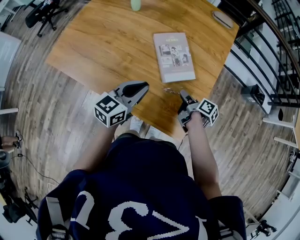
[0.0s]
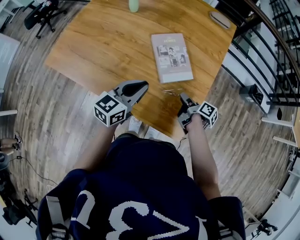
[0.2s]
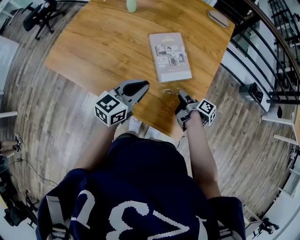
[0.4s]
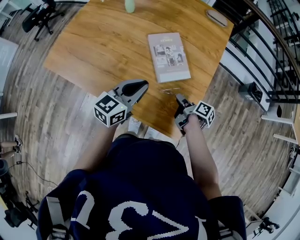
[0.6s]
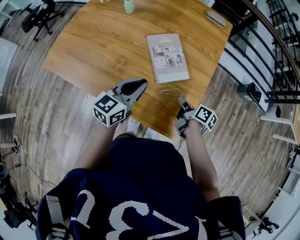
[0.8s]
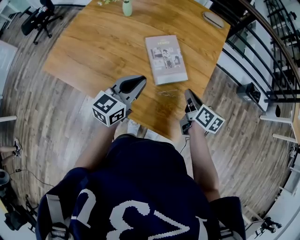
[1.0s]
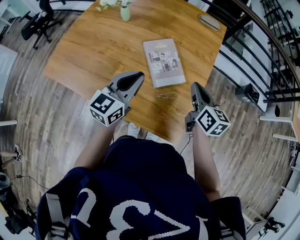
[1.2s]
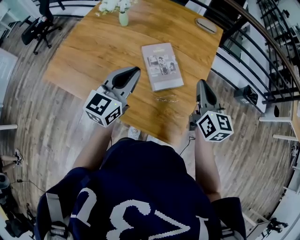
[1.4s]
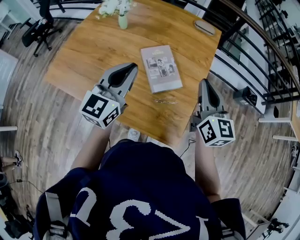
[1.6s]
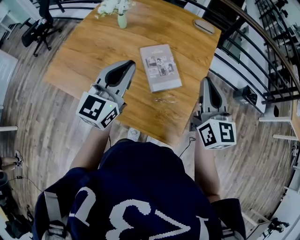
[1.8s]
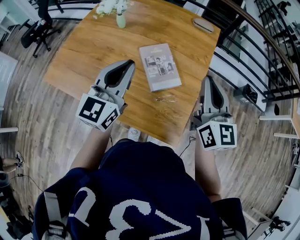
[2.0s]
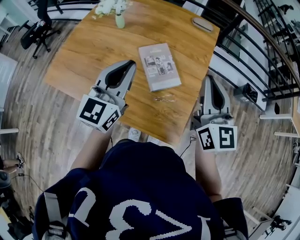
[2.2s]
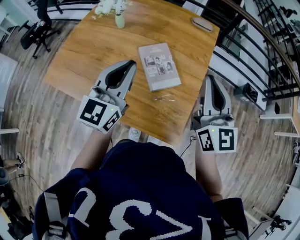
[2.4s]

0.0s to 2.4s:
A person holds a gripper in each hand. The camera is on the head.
0.0s to 1.2s: The left gripper is displaced upward by about 5 cm. Meanwhile the right gripper moves upward, approximately 20 cm, rotates around the line of its fingers by about 50 degrees, counterclockwise from behind, and closes up.
1.2s to 2.4s: The right gripper is displaced upward by roughly 15 cm, and changes its angle by about 40 degrees; the left gripper travels upward by approximately 10 cm.

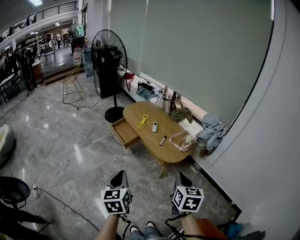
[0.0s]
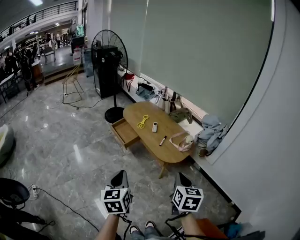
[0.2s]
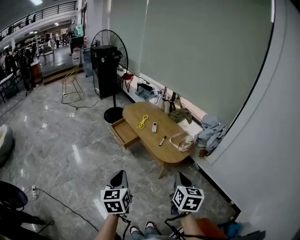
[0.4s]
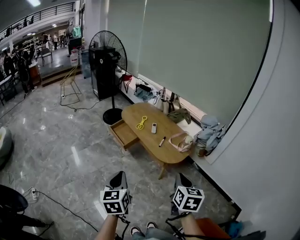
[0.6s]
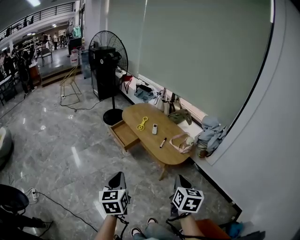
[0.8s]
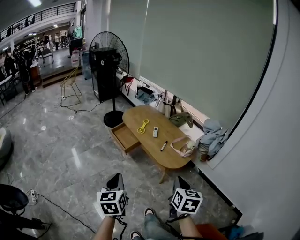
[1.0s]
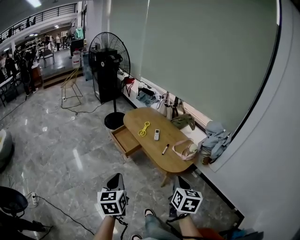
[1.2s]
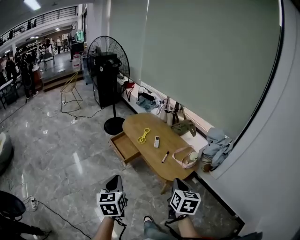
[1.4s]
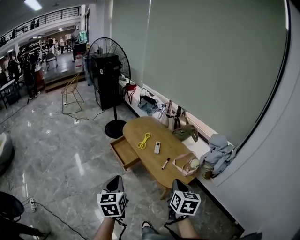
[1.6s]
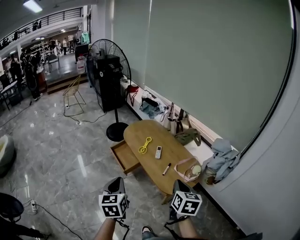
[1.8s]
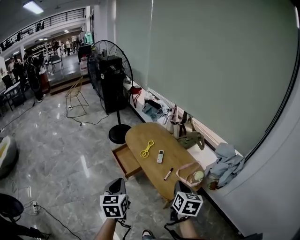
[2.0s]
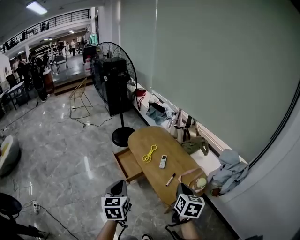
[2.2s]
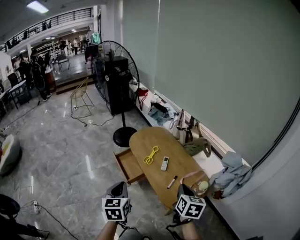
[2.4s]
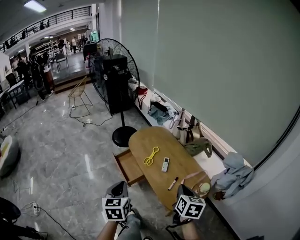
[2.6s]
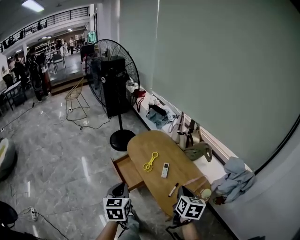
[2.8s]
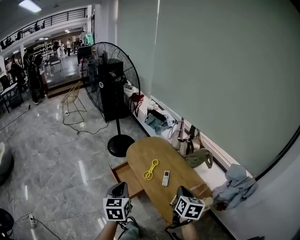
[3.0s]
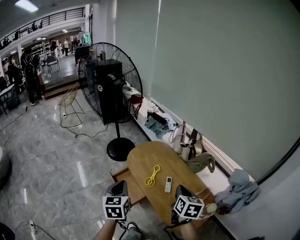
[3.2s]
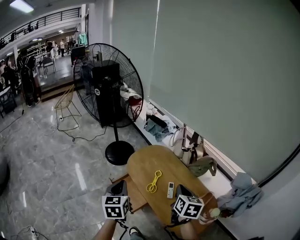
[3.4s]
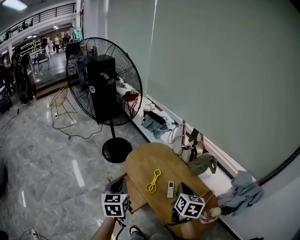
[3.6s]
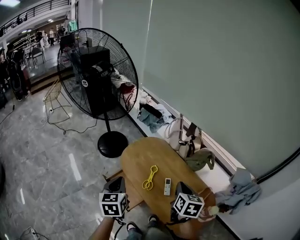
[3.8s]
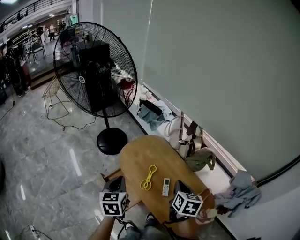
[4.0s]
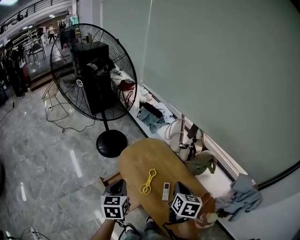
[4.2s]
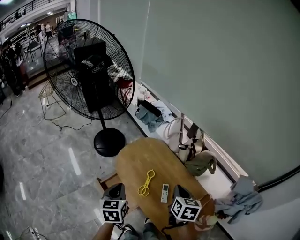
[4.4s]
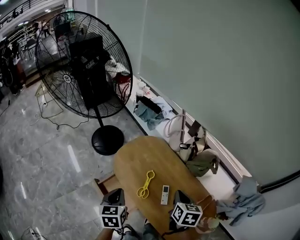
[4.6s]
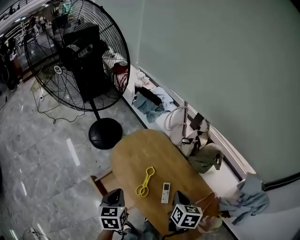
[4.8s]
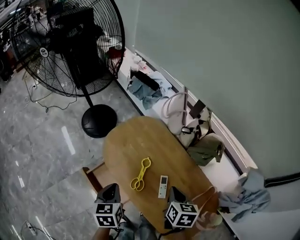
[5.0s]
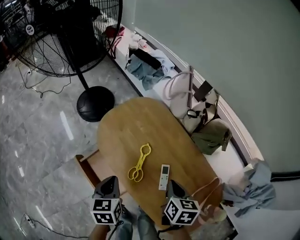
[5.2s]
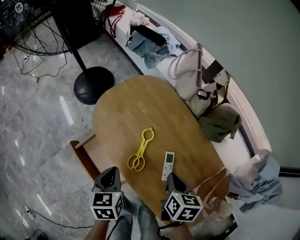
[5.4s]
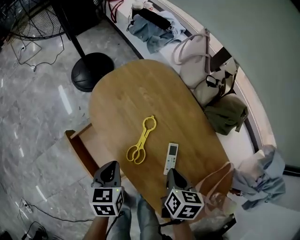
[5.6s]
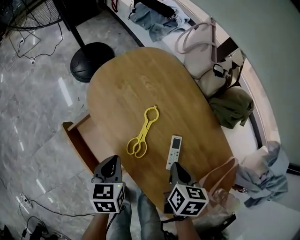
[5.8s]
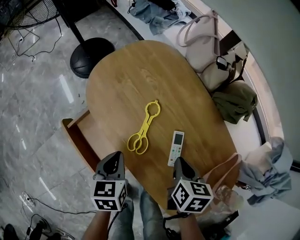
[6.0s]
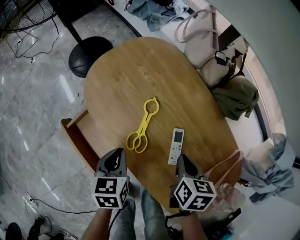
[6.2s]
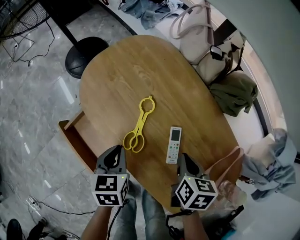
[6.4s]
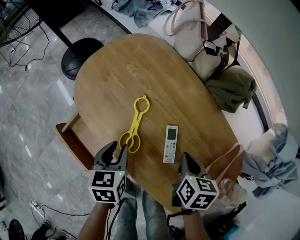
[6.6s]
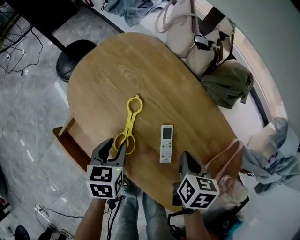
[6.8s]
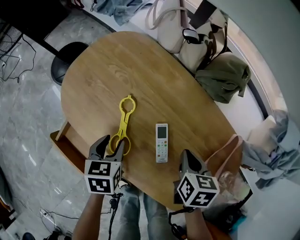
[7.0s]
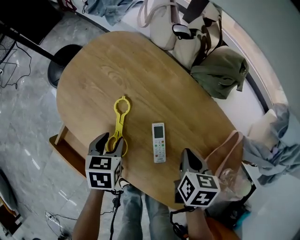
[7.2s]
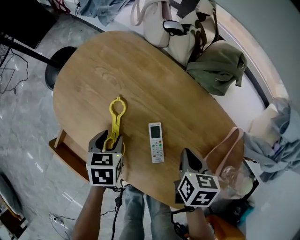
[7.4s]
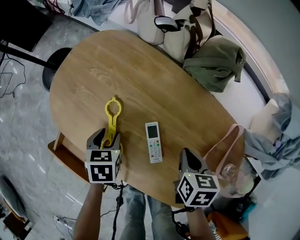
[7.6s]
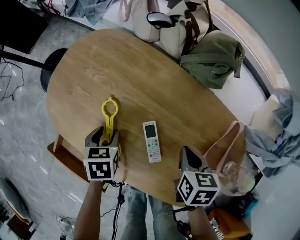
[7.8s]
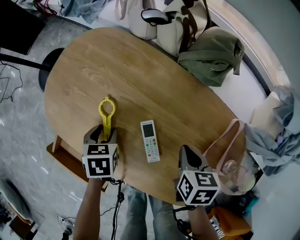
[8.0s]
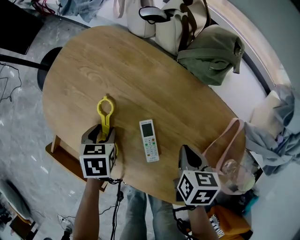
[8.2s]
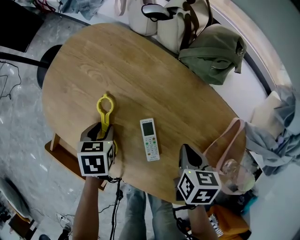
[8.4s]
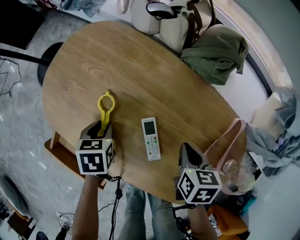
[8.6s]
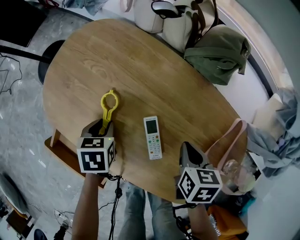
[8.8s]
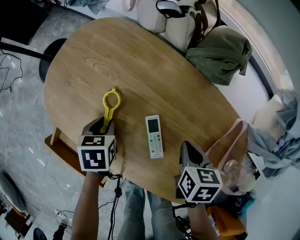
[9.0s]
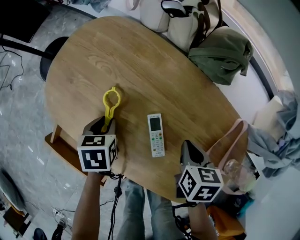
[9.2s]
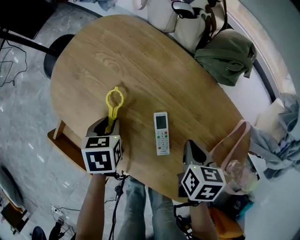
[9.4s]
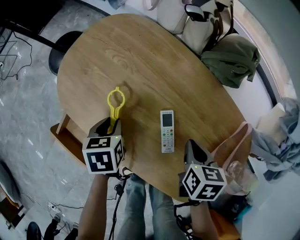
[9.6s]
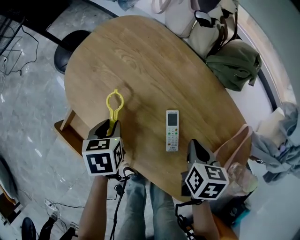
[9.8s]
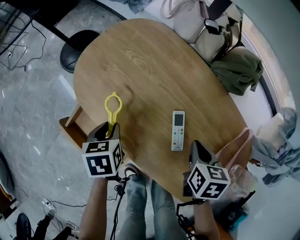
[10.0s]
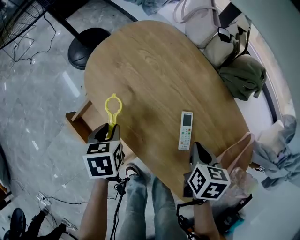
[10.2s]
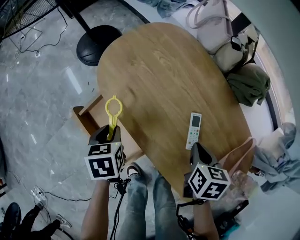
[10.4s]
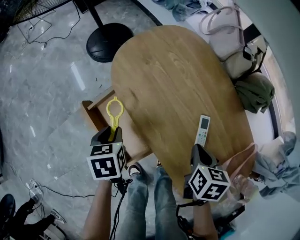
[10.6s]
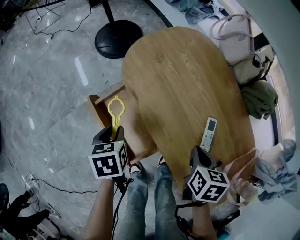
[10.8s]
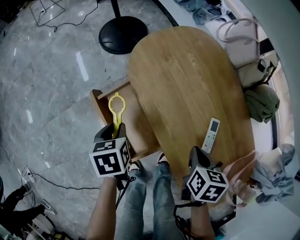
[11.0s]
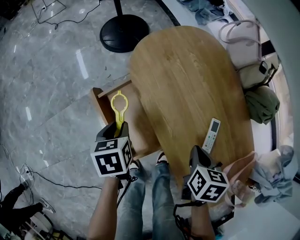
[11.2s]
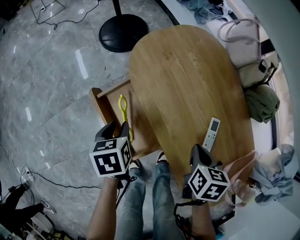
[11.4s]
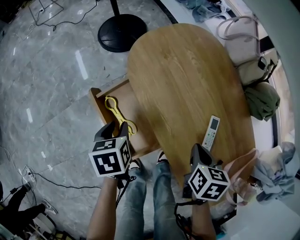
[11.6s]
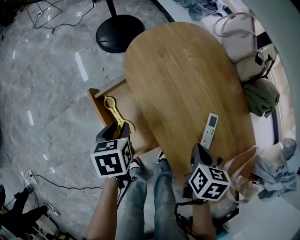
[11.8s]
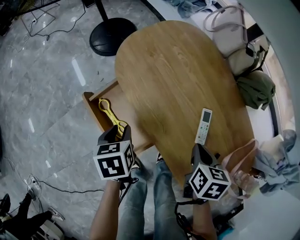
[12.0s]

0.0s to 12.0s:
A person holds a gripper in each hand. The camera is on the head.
0.0s to 1.6s: The two grippers go roughly 20 cm forward.
1.6s to 3.0s: Both grippers move forward, about 30 cm.
3.0s to 4.4s: Both grippers travel together forward, approximately 25 cm.
4.4s to 6.0s: Both grippers travel together downward, some 35 cm.
6.0s to 7.6s: The right gripper heads to the right, covering about 10 cm. The left gripper is displaced forward, downward and to the right by some 15 cm, turns by roughly 30 degrees, and opens up.
7.6s to 9.0s: The grippers move only a little.
9.0s to 10.4s: The left gripper is displaced to the left, backward and upward by approximately 20 cm, and rotates about 20 degrees; the right gripper travels to the left by roughly 10 cm.

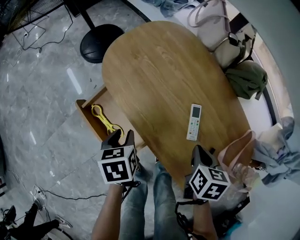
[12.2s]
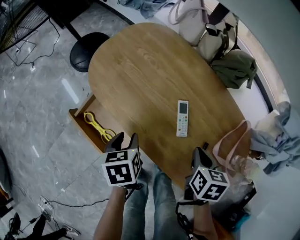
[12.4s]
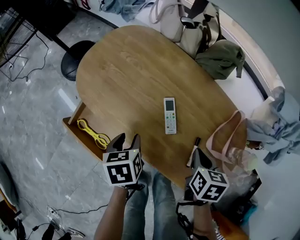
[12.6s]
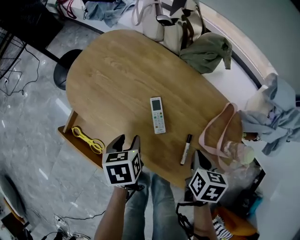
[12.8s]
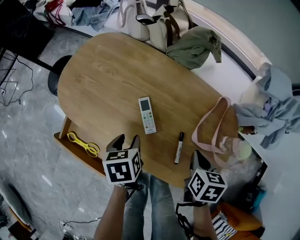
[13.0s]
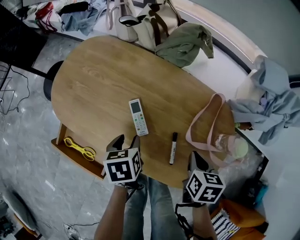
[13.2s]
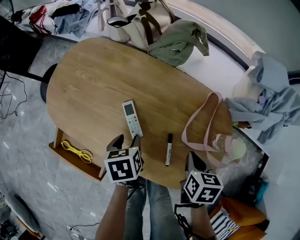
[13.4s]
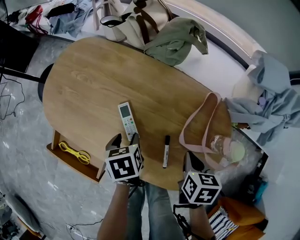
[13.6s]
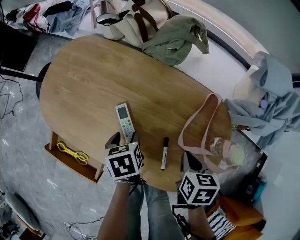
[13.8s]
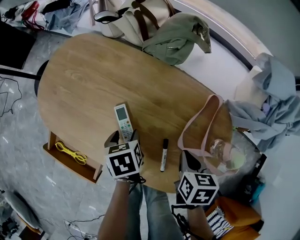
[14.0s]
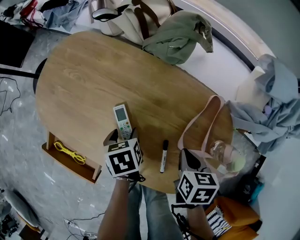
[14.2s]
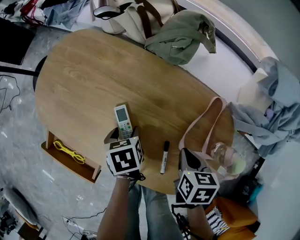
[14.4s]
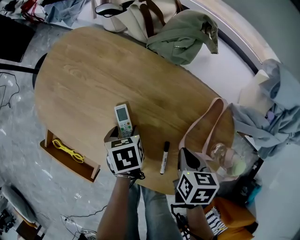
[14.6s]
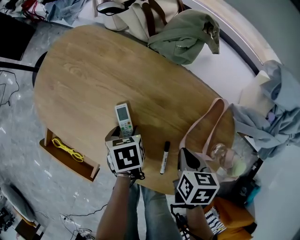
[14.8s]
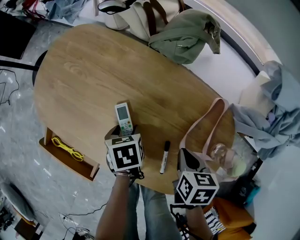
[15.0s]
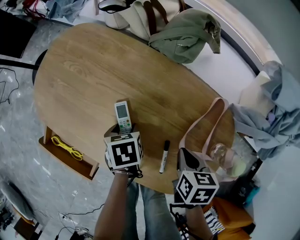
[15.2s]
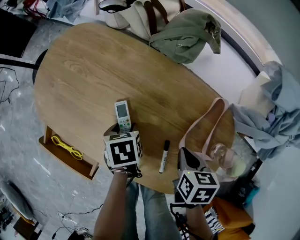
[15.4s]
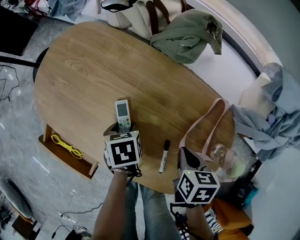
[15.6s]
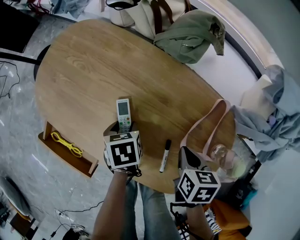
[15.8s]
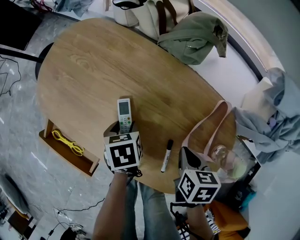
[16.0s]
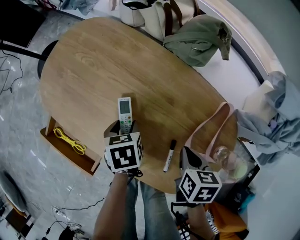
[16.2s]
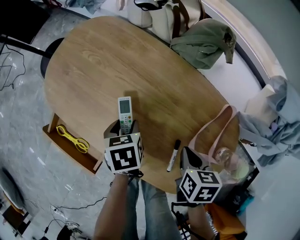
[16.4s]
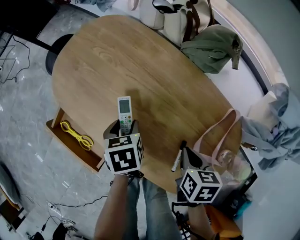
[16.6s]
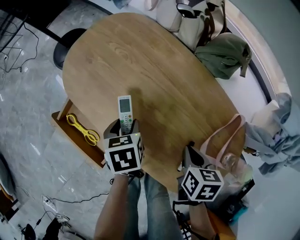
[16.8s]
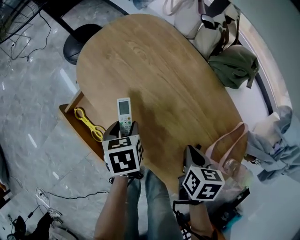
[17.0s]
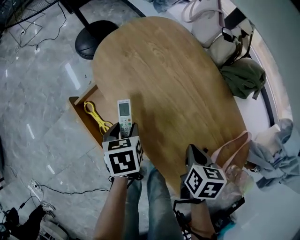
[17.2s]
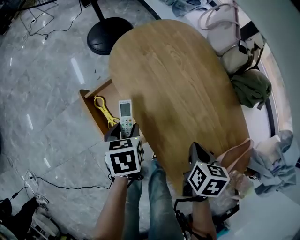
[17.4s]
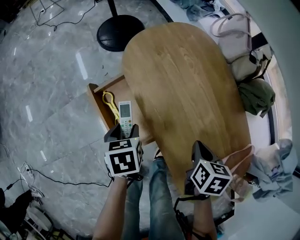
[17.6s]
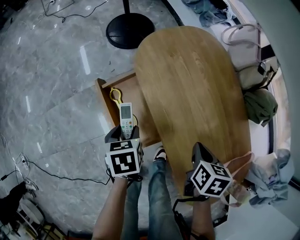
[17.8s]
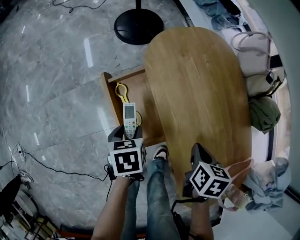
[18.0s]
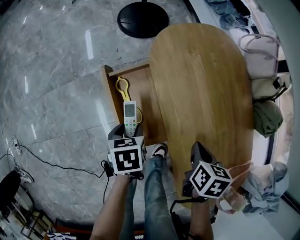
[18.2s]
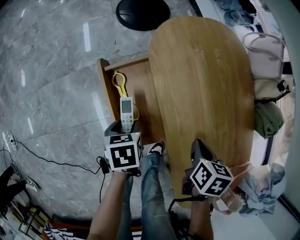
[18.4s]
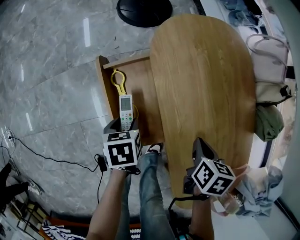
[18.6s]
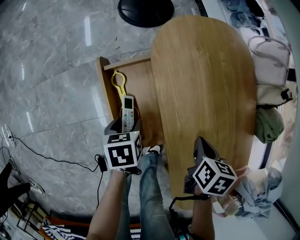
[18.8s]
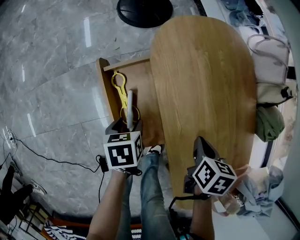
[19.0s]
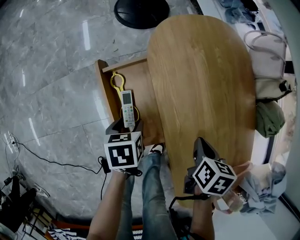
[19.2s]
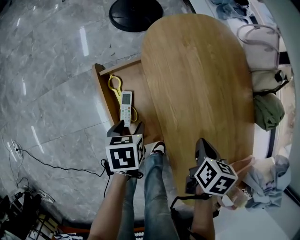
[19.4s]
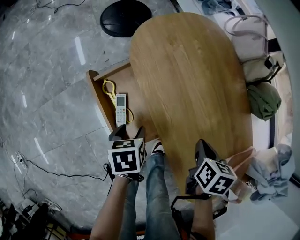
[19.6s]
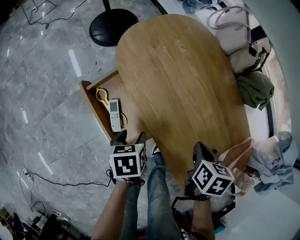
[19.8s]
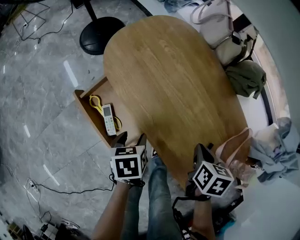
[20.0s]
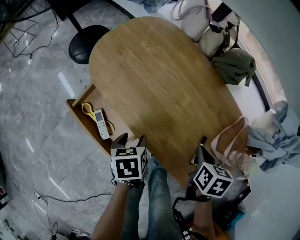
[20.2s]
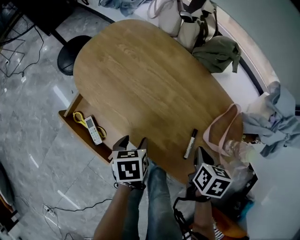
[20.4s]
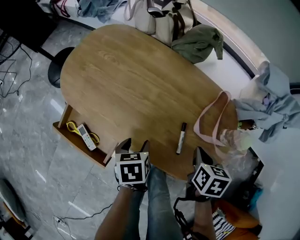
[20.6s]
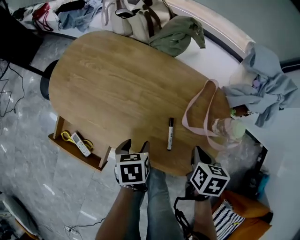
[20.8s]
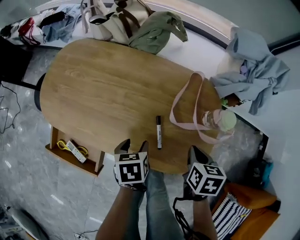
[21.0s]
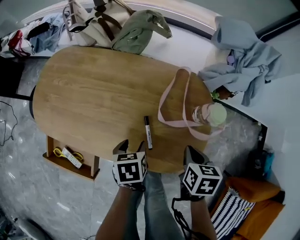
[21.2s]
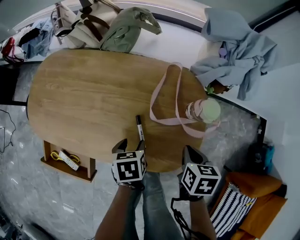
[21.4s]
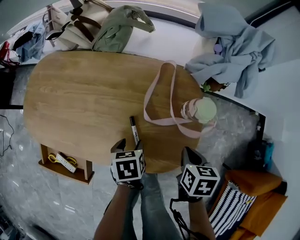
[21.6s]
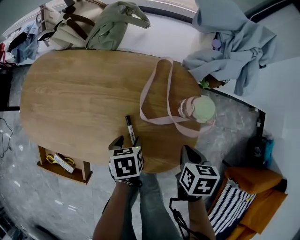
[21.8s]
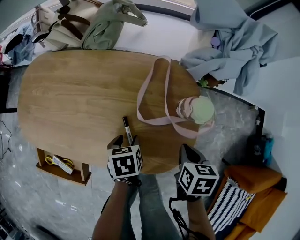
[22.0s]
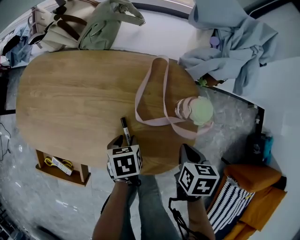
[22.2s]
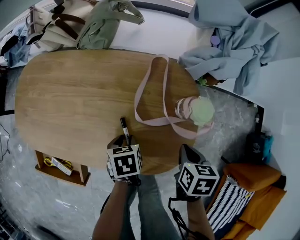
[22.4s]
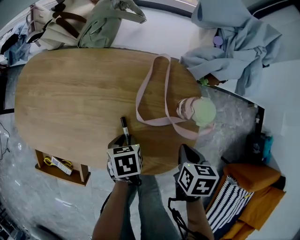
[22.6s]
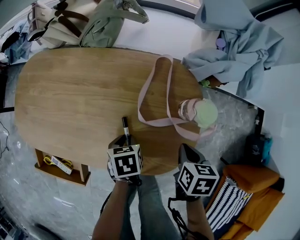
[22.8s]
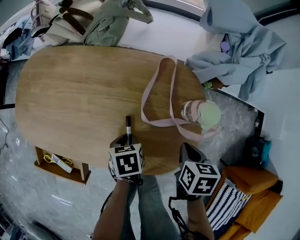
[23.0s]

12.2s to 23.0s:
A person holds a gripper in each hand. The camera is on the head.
12.2s to 13.8s: The right gripper shifts by approximately 20 cm, and turns by approximately 20 degrees. The left gripper changes place by roughly 25 cm, and changes its angle by approximately 20 degrees.
13.8s to 15.2s: The grippers stay close to where they were, moving slightly.
15.2s to 16.8s: The right gripper moves approximately 10 cm; the left gripper changes place by some 15 cm.
16.8s to 18.4s: The right gripper heads to the left and forward, covering approximately 20 cm, and turns by some 20 degrees; the left gripper is displaced to the left by roughly 25 cm, and rotates approximately 30 degrees.
18.4s to 20.0s: The left gripper shifts about 15 cm to the right and upward, and changes its angle by about 20 degrees. Meanwhile the right gripper goes some 15 cm to the right and backward, and swivels roughly 20 degrees.
20.0s to 21.4s: The left gripper moves about 30 cm, and turns by roughly 40 degrees; the right gripper moves roughly 30 cm, and turns by roughly 30 degrees.
21.4s to 23.0s: The left gripper shifts by some 5 cm, and closes up.
